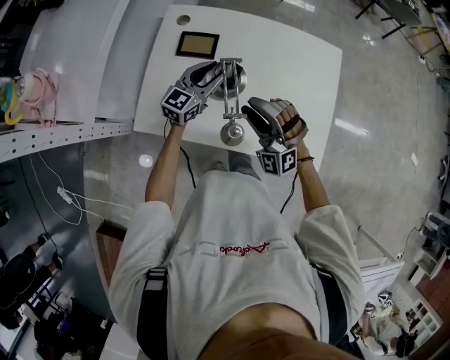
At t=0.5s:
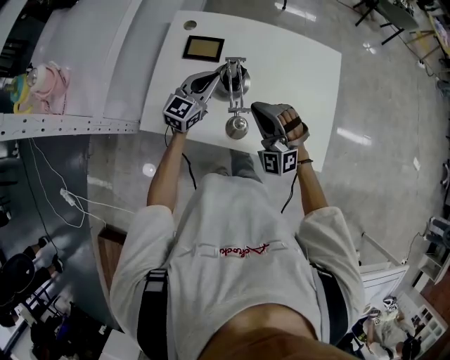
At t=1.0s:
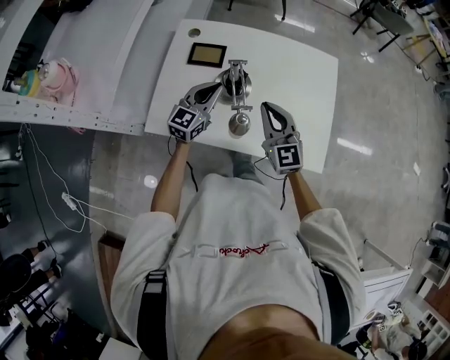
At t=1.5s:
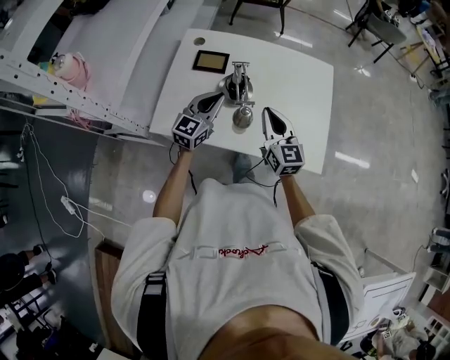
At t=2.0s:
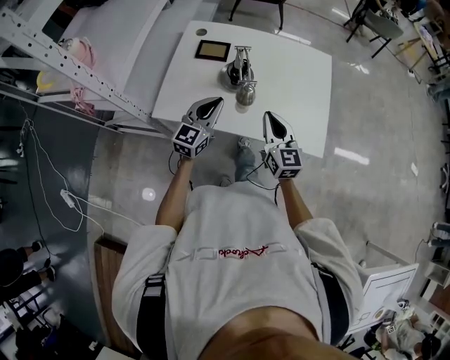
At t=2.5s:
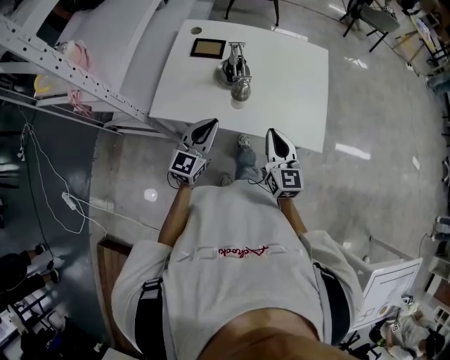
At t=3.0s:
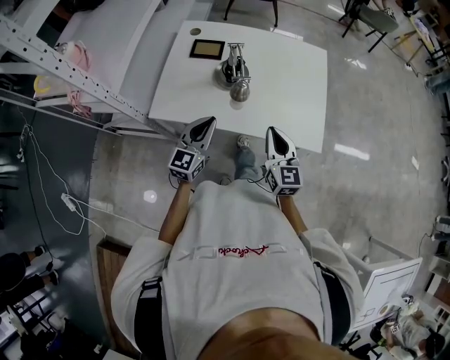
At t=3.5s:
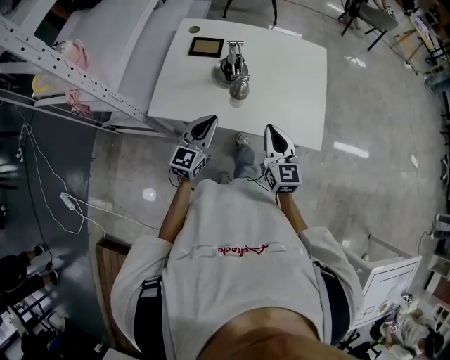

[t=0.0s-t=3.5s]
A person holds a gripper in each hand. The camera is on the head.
t=0.0s to t=2.0s: The right gripper moves backward and to the right, some 10 cm, rotates around the line of its fingers by some 70 degrees, clockwise from behind, and closes. Meanwhile the left gripper moves backward, about 20 cm, and closes its fingers.
t=2.0s to t=3.5s: Both grippers move backward, approximately 5 cm.

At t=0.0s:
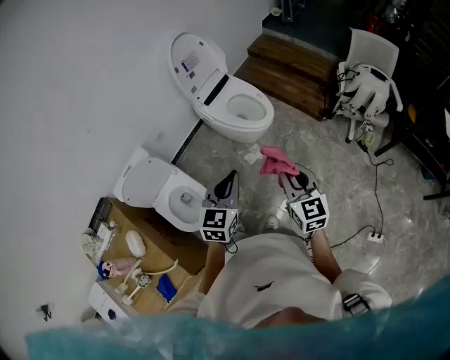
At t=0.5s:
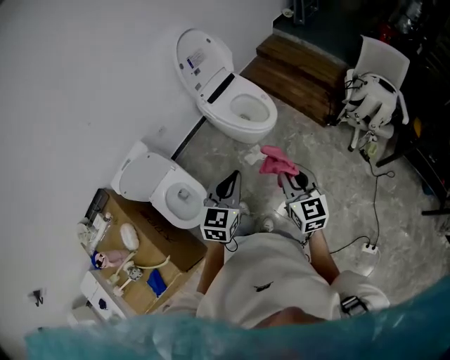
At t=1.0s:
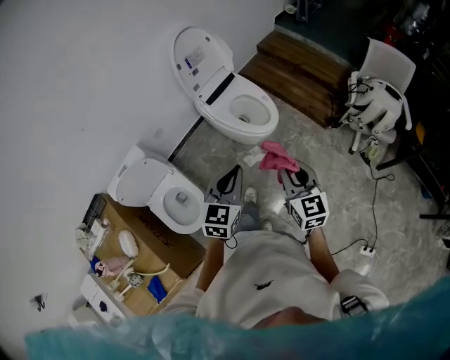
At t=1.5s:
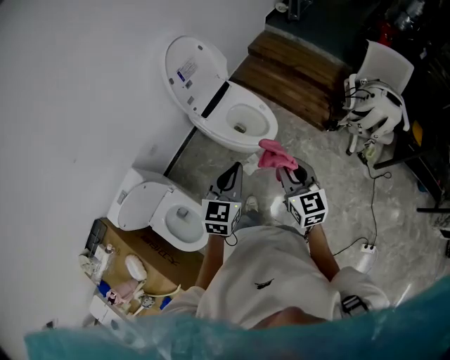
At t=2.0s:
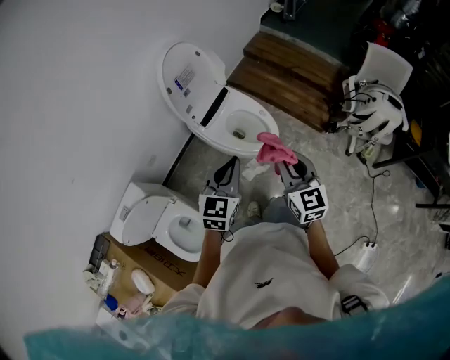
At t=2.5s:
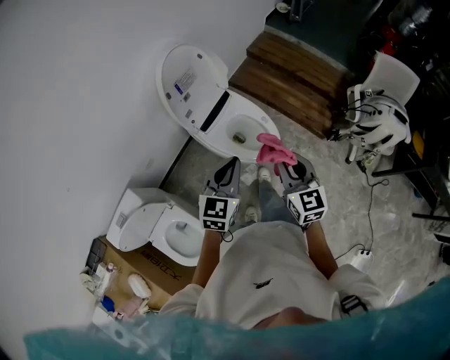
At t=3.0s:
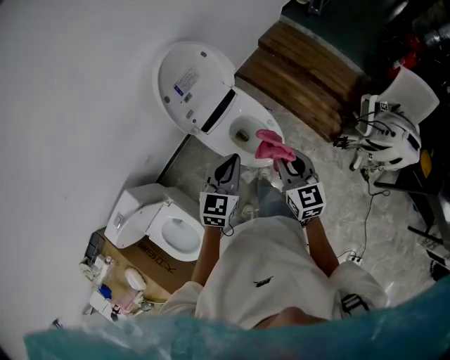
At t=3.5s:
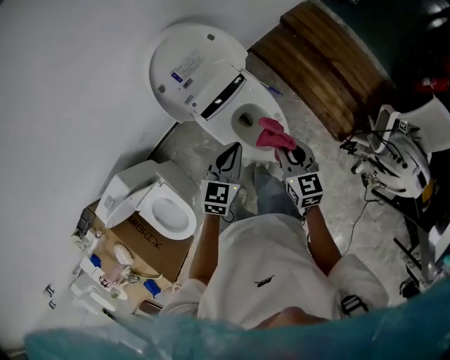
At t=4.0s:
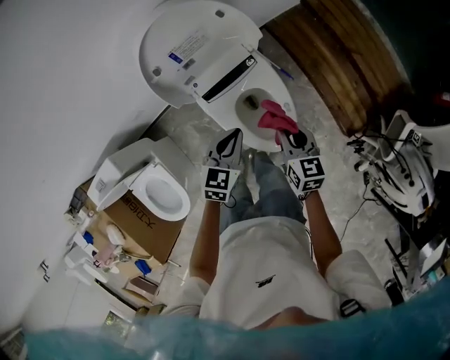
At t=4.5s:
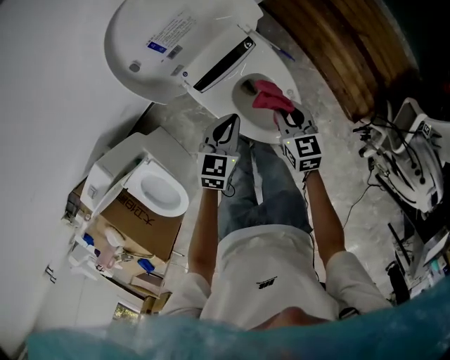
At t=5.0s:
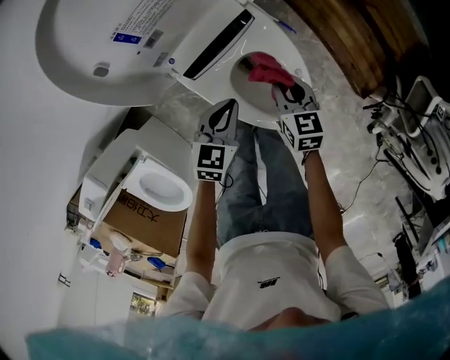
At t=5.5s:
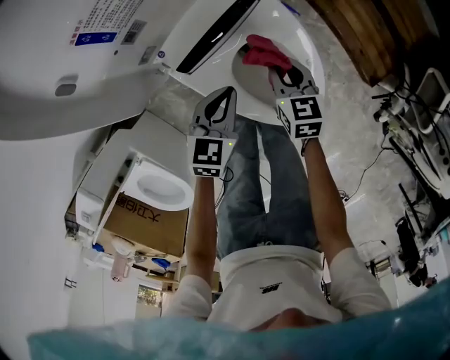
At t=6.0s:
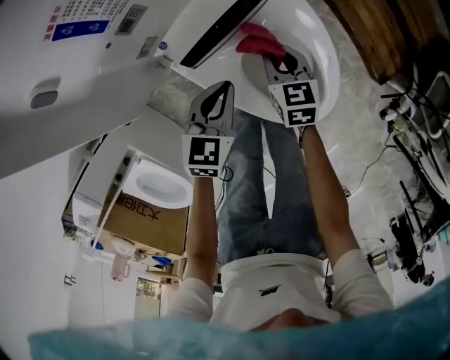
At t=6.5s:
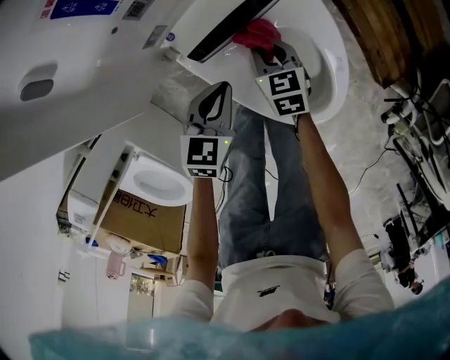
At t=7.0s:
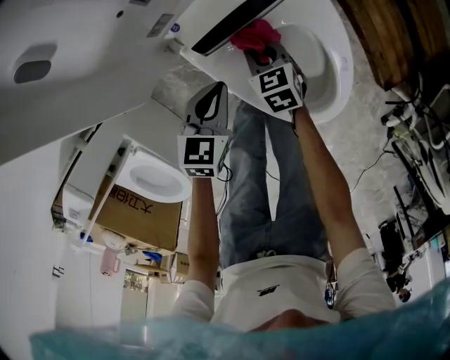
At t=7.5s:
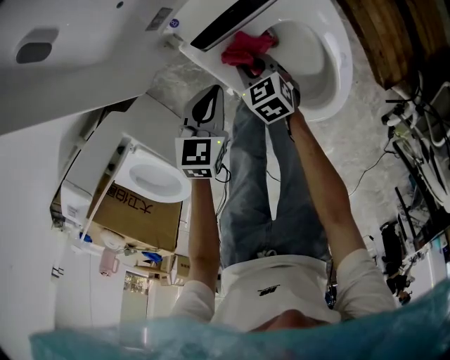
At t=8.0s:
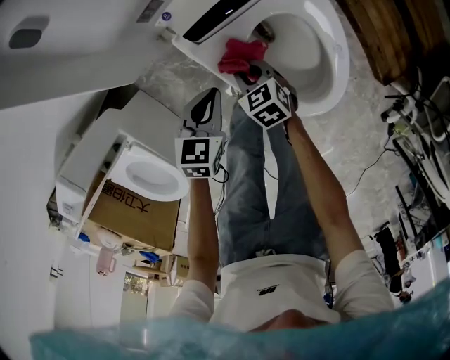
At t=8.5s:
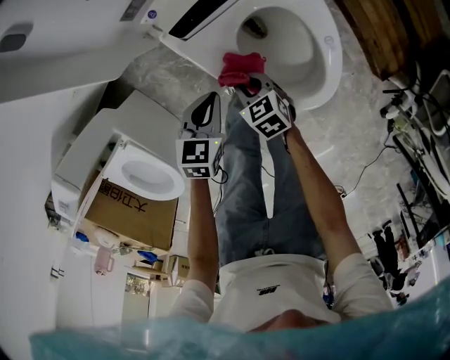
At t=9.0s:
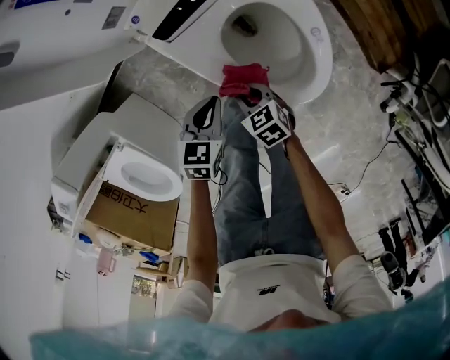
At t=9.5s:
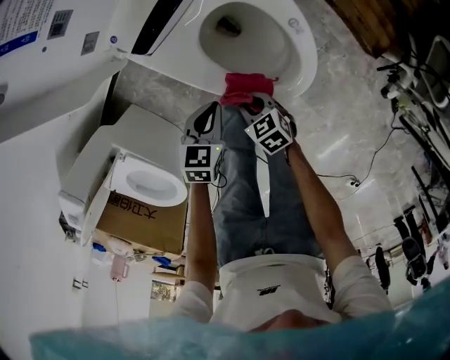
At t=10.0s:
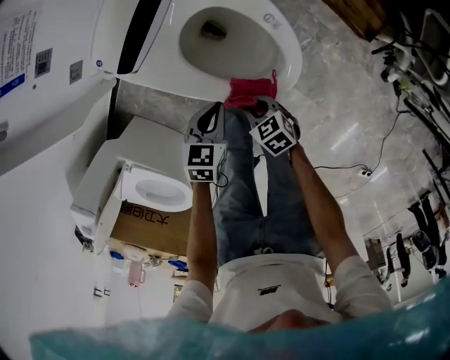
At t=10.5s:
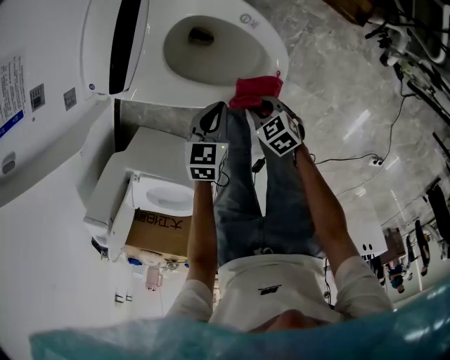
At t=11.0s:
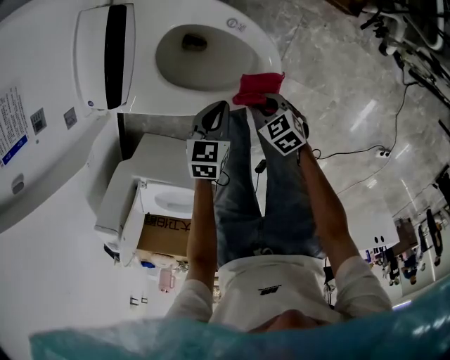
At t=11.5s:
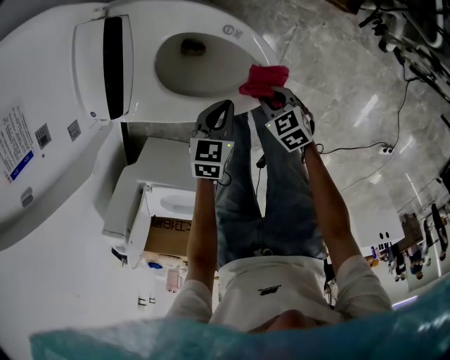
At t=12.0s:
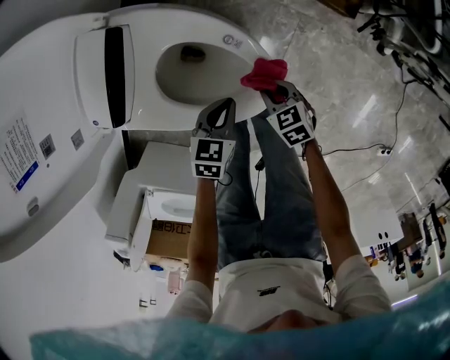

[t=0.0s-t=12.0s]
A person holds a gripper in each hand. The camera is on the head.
t=0.0s to t=2.0s: Both grippers move forward, approximately 30 cm.
t=2.0s to t=4.0s: The two grippers go about 40 cm forward and downward. The left gripper changes its angle by some 30 degrees; the right gripper changes its angle by some 30 degrees.
t=4.0s to t=6.0s: The two grippers go about 30 cm downward.
t=6.0s to t=8.0s: The right gripper travels backward, to the left and downward by roughly 15 cm, and swivels some 30 degrees; the left gripper shifts roughly 10 cm backward and to the left.
t=8.0s to t=10.0s: The left gripper is displaced to the right and backward by approximately 15 cm; the right gripper travels backward and to the right by roughly 20 cm.
t=10.0s to t=12.0s: The left gripper shifts by some 15 cm; the right gripper moves roughly 15 cm, and turns by some 20 degrees.

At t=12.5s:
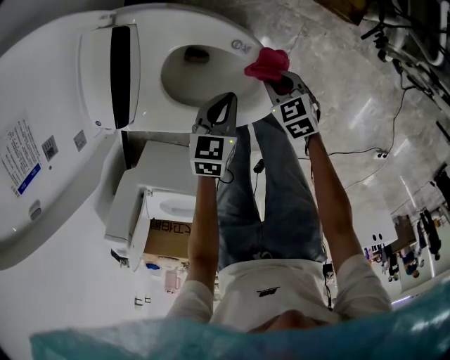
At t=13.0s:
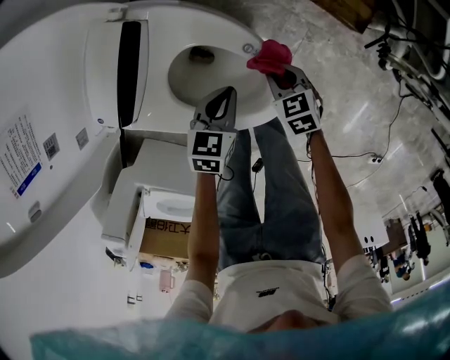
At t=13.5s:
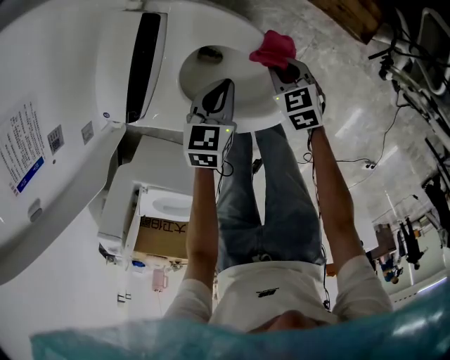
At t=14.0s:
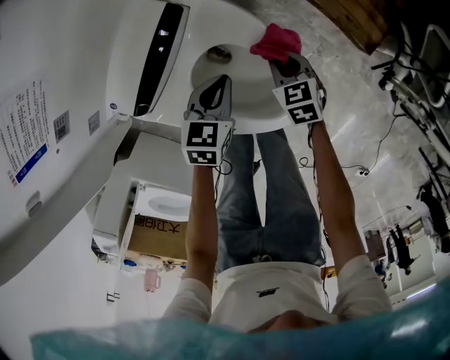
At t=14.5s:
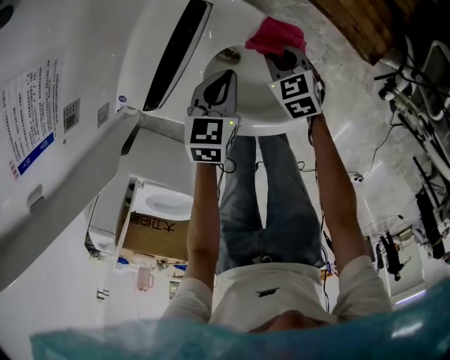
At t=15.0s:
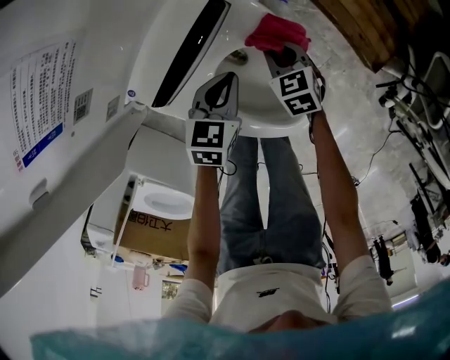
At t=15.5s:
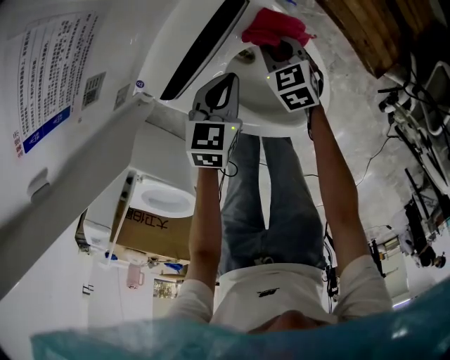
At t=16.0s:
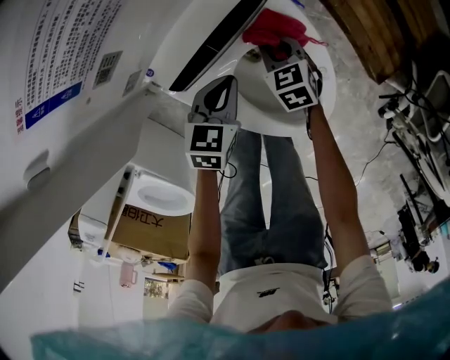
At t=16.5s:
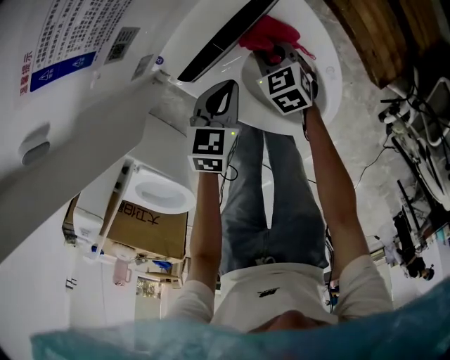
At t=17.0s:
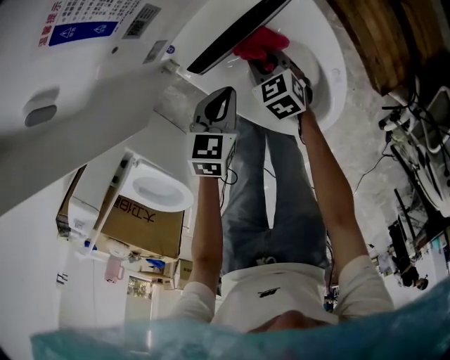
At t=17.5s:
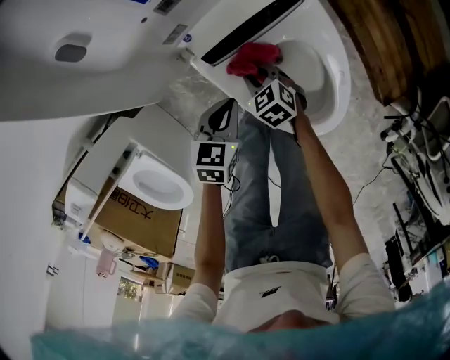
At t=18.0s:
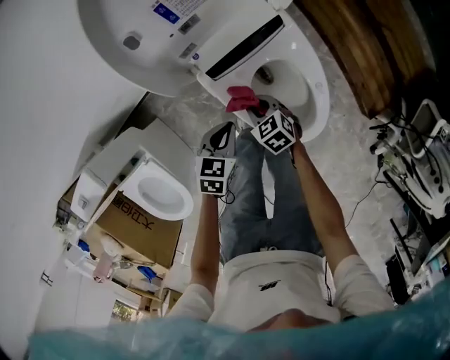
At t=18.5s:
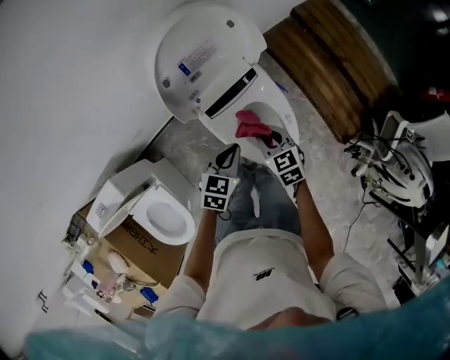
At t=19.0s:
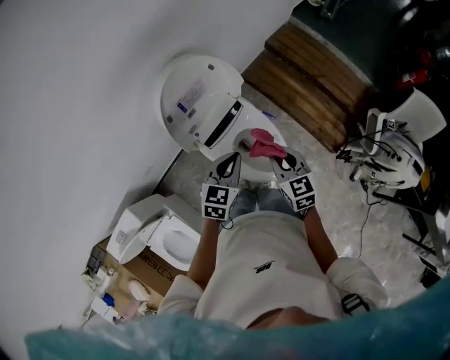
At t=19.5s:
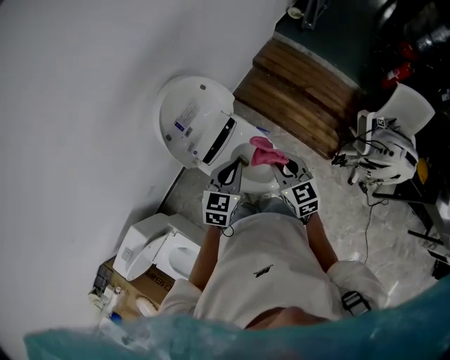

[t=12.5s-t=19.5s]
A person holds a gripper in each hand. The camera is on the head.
t=12.5s to t=14.5s: Both grippers move to the left and forward, some 20 cm.
t=14.5s to t=16.0s: Both grippers travel together to the left, approximately 10 cm.
t=16.0s to t=17.5s: The right gripper travels to the left and backward by roughly 15 cm, and swivels roughly 20 degrees. The left gripper goes some 10 cm backward and to the left.
t=17.5s to t=19.5s: Both grippers move upward, about 50 cm. The right gripper tilts its fingers roughly 30 degrees upward. The left gripper swivels roughly 40 degrees.

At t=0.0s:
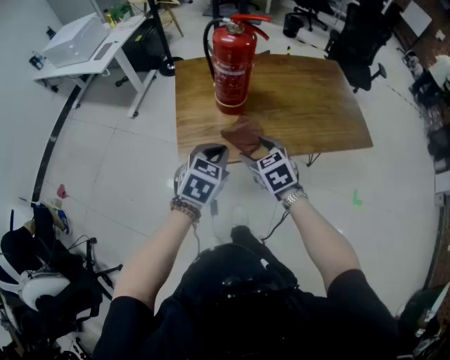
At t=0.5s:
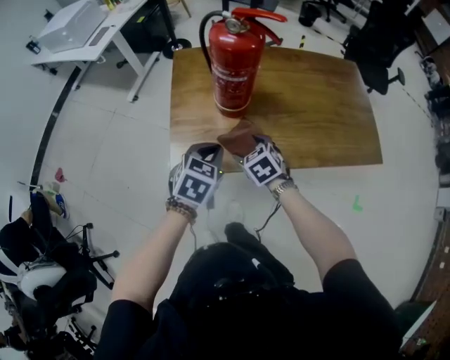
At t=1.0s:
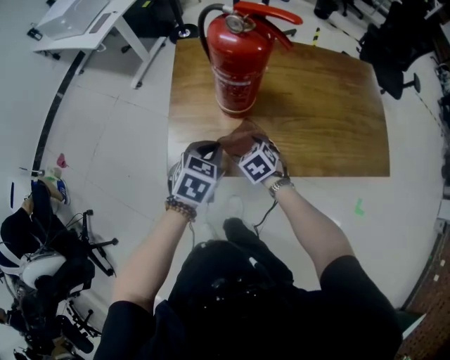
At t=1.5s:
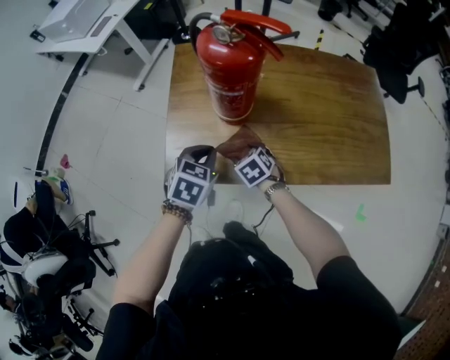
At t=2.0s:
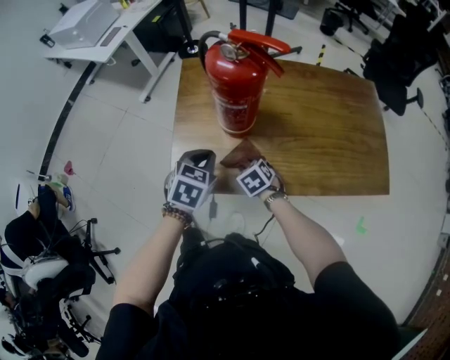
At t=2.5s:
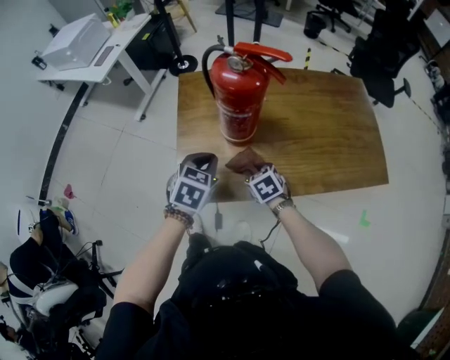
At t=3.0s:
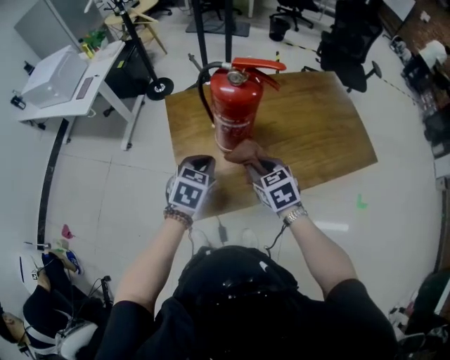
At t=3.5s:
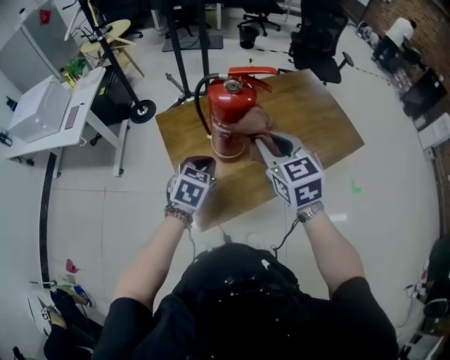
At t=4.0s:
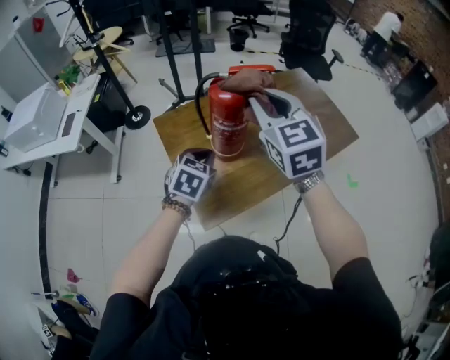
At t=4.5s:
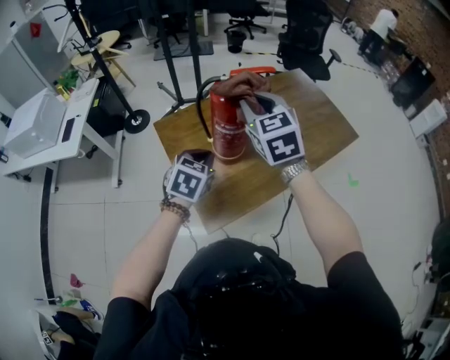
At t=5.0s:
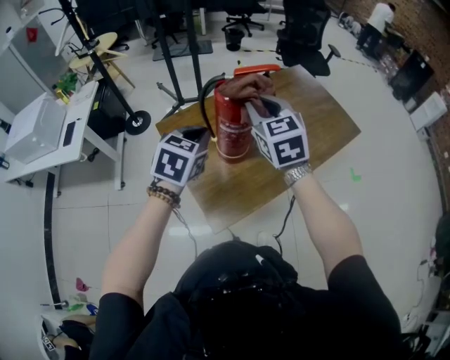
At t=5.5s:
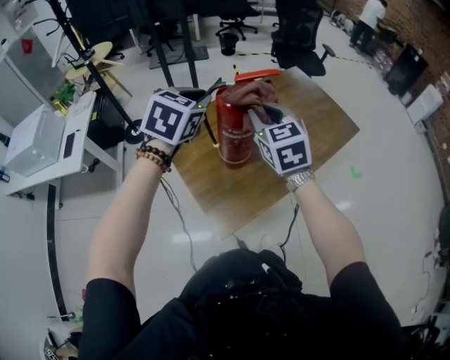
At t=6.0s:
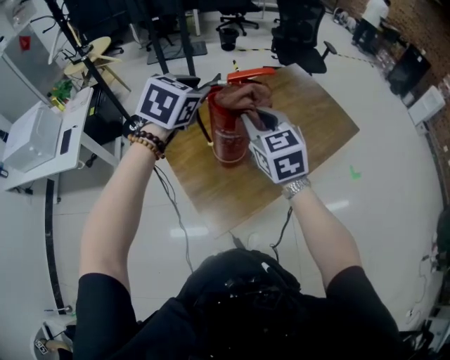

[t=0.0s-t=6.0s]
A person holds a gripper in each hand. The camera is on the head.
t=0.0s to t=2.0s: The left gripper heads forward and downward, covering approximately 15 cm. Meanwhile the right gripper shifts approximately 20 cm downward and forward, swivels roughly 20 degrees, and closes up.
t=2.0s to t=4.0s: The right gripper shifts roughly 50 cm upward, and tilts its fingers roughly 50 degrees upward. Meanwhile the left gripper is displaced upward by roughly 10 cm, and swivels roughly 30 degrees.
t=4.0s to t=6.0s: The right gripper goes approximately 5 cm downward. The left gripper is displaced upward and forward by roughly 25 cm, and opens.
